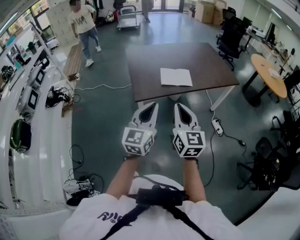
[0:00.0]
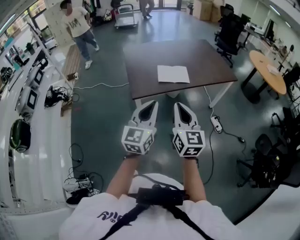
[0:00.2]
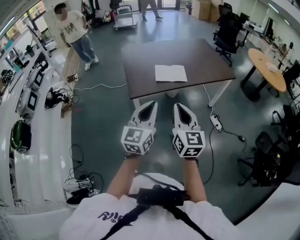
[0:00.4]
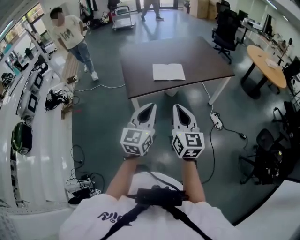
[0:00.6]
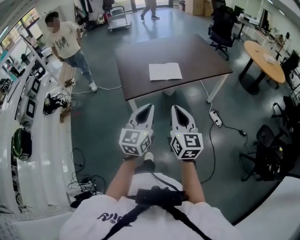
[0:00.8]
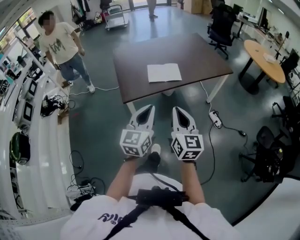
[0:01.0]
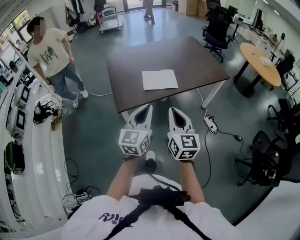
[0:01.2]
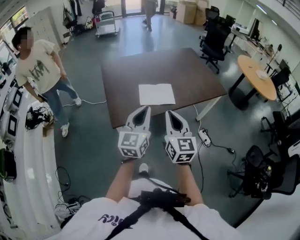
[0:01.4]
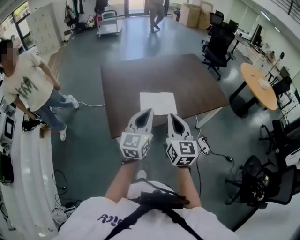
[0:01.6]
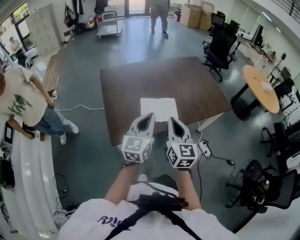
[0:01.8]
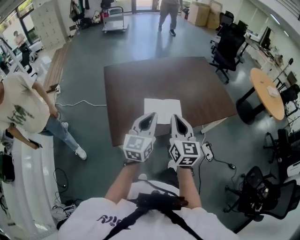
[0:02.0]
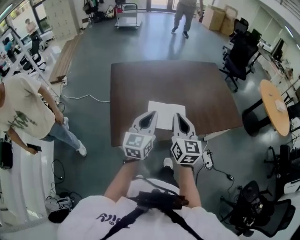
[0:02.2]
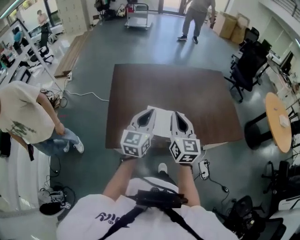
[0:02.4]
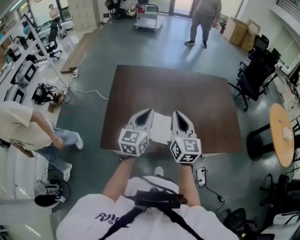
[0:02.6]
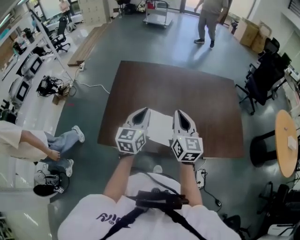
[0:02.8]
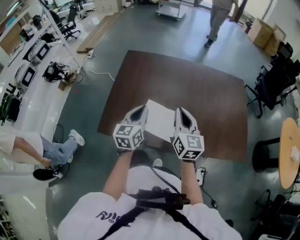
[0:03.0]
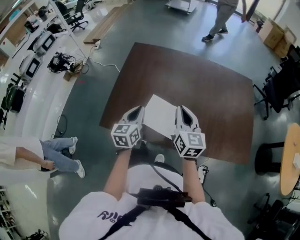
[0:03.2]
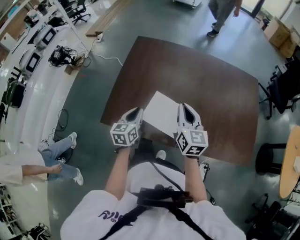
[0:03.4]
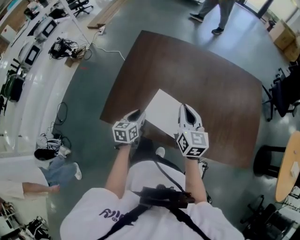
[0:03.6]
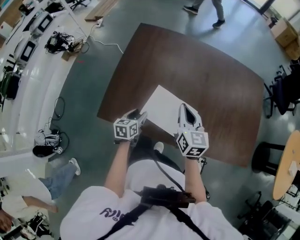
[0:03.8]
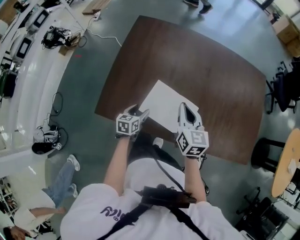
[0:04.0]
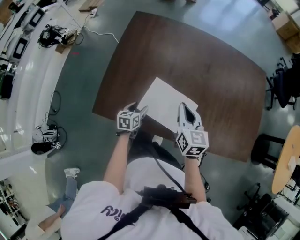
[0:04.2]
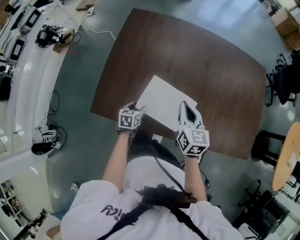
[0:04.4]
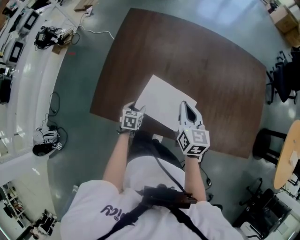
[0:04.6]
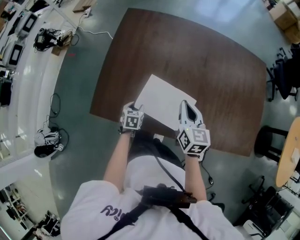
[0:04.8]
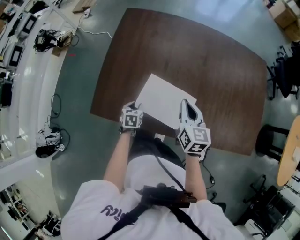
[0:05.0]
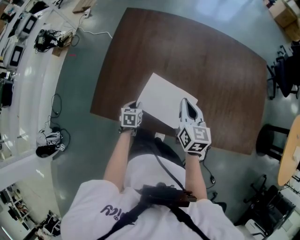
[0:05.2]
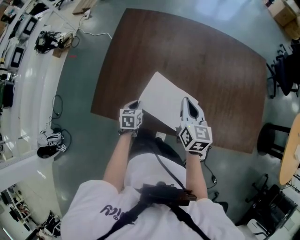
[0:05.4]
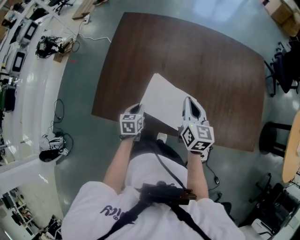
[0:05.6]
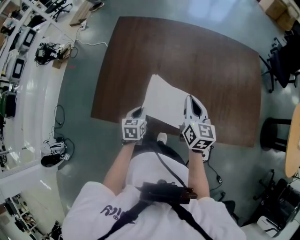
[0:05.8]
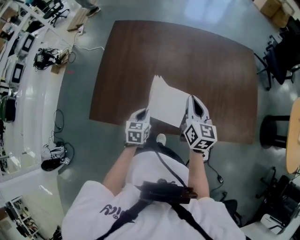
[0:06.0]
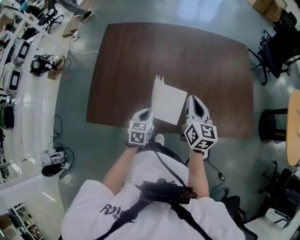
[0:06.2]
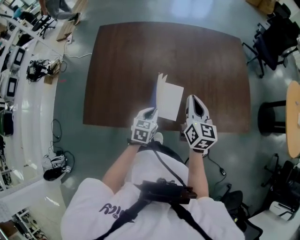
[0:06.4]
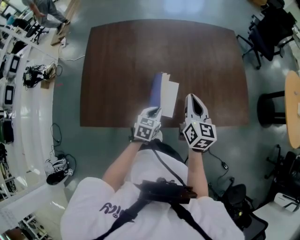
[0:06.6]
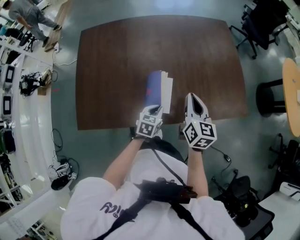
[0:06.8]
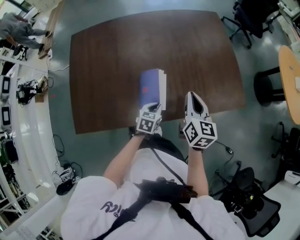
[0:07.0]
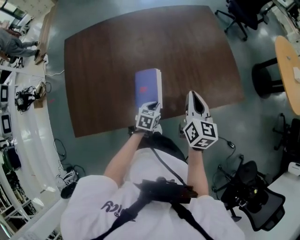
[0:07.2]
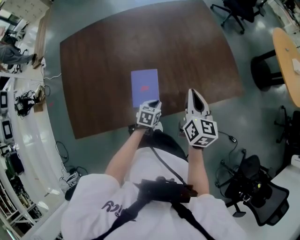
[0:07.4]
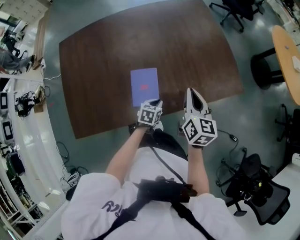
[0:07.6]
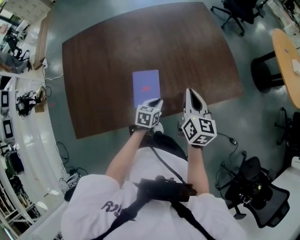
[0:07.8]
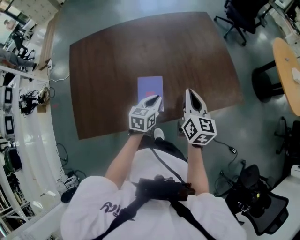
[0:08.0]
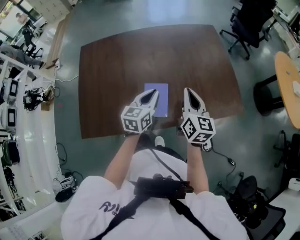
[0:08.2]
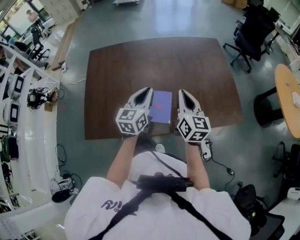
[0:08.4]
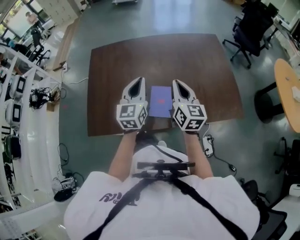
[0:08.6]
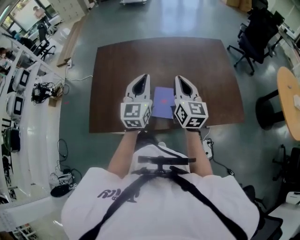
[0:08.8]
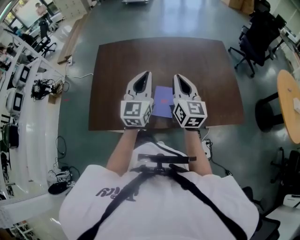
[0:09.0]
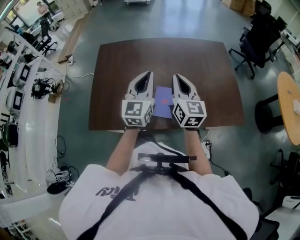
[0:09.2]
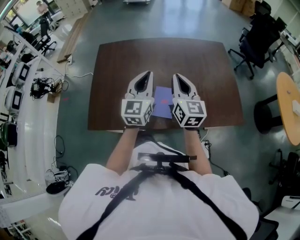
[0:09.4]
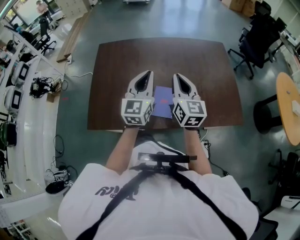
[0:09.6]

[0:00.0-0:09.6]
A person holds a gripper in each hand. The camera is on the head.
0.0 to 1.6 s: The two grippers go some 35 cm forward.
1.6 to 3.2 s: The right gripper changes place by some 50 cm, and changes its angle by about 30 degrees; the left gripper moves some 40 cm, and changes its angle by about 40 degrees.
3.2 to 4.8 s: The right gripper goes approximately 20 cm downward and forward. Meanwhile the left gripper shifts roughly 35 cm downward, tilts its fingers approximately 40 degrees downward, and opens its fingers.
4.8 to 6.4 s: The right gripper heads to the right and backward, covering some 20 cm. The left gripper goes approximately 30 cm to the right and upward, rotates some 30 degrees, and closes.
6.4 to 8.0 s: The left gripper is displaced to the right and forward by some 15 cm. Meanwhile the right gripper travels to the right by some 15 cm.
8.0 to 9.6 s: The left gripper is displaced upward and to the left by approximately 30 cm, and points its fingers about 30 degrees further upward. The right gripper heads to the left and upward, covering about 20 cm, and rotates about 30 degrees.

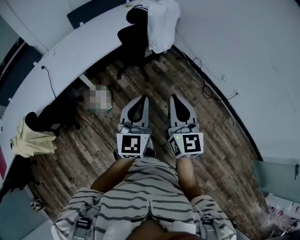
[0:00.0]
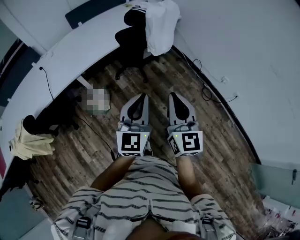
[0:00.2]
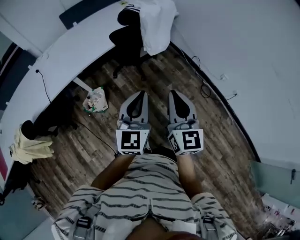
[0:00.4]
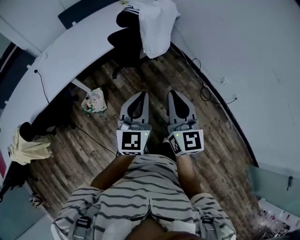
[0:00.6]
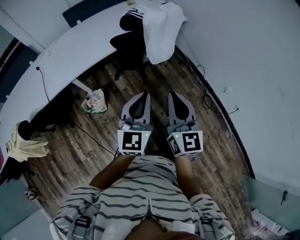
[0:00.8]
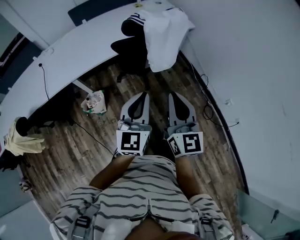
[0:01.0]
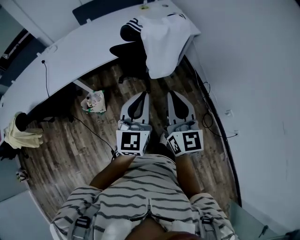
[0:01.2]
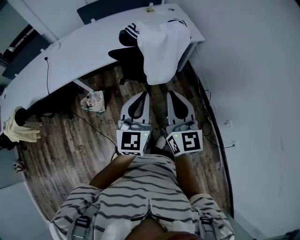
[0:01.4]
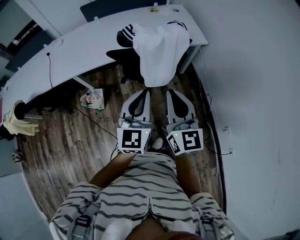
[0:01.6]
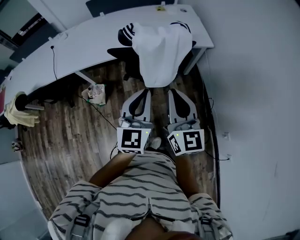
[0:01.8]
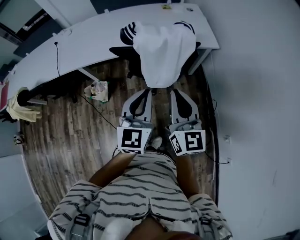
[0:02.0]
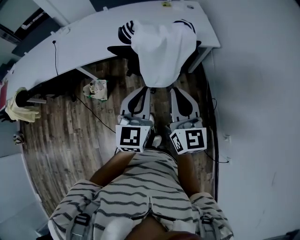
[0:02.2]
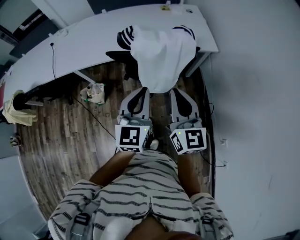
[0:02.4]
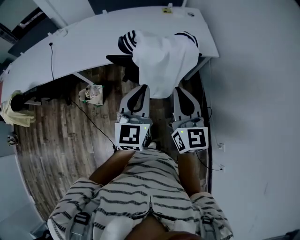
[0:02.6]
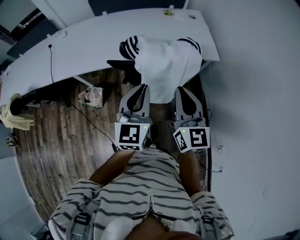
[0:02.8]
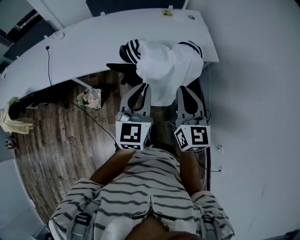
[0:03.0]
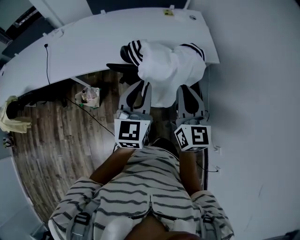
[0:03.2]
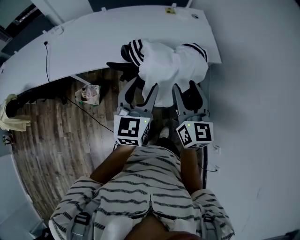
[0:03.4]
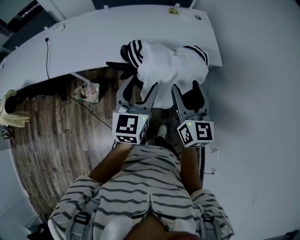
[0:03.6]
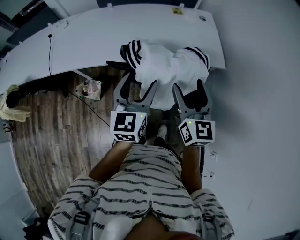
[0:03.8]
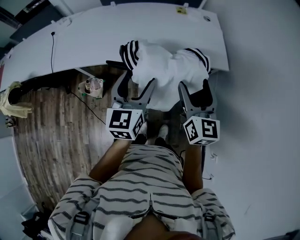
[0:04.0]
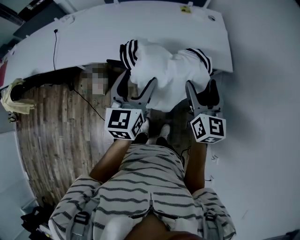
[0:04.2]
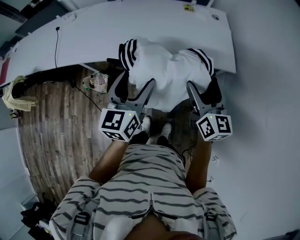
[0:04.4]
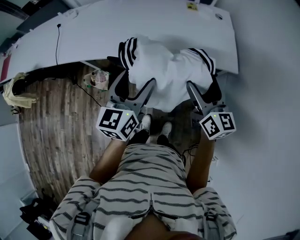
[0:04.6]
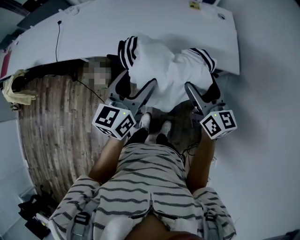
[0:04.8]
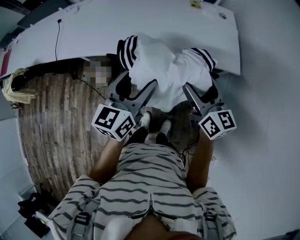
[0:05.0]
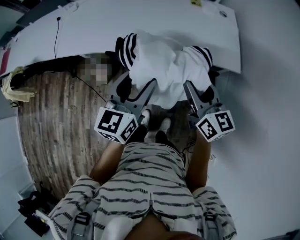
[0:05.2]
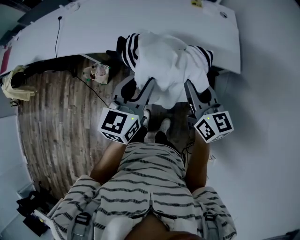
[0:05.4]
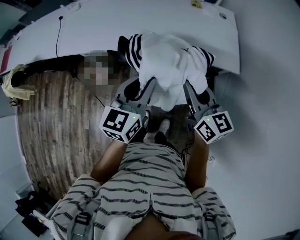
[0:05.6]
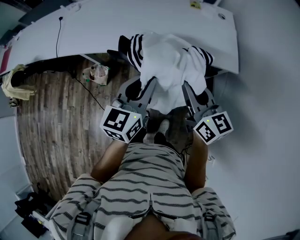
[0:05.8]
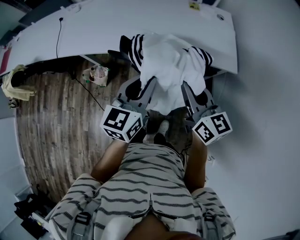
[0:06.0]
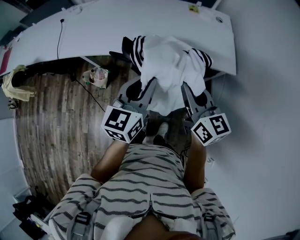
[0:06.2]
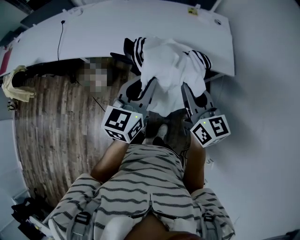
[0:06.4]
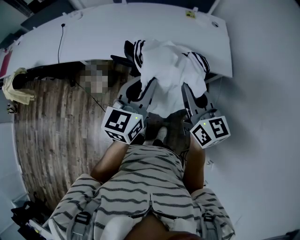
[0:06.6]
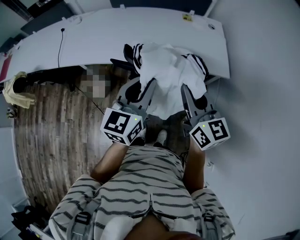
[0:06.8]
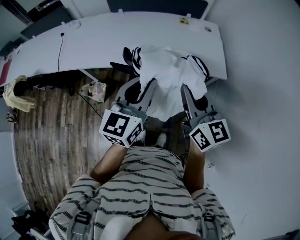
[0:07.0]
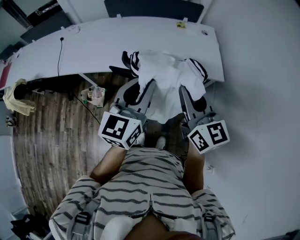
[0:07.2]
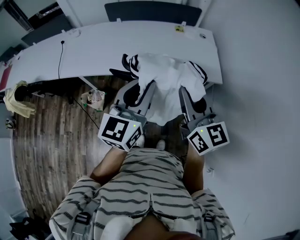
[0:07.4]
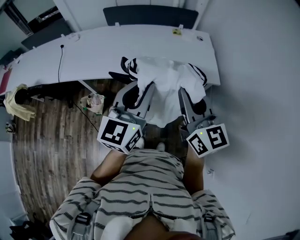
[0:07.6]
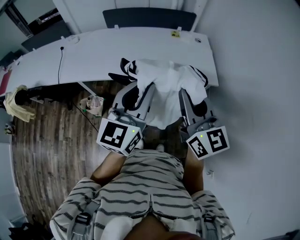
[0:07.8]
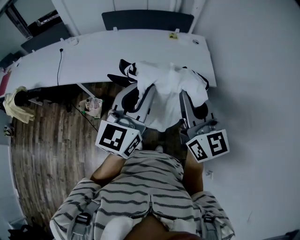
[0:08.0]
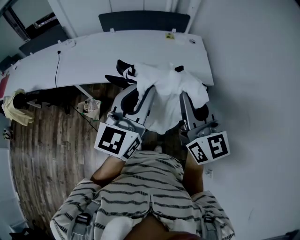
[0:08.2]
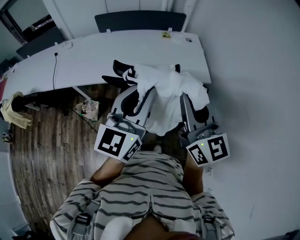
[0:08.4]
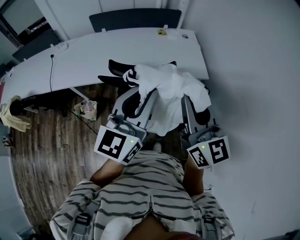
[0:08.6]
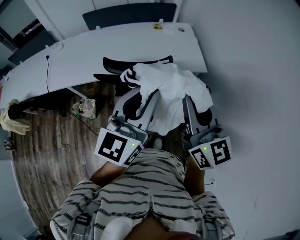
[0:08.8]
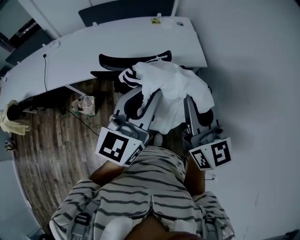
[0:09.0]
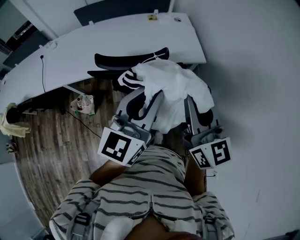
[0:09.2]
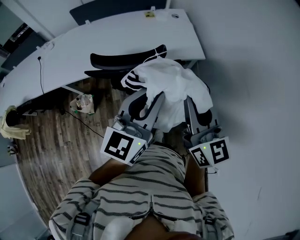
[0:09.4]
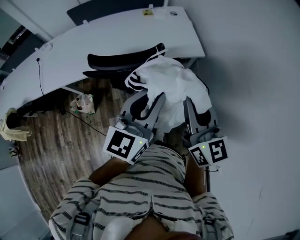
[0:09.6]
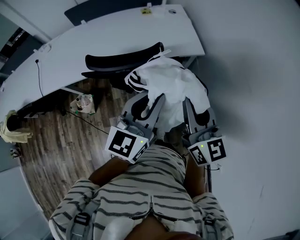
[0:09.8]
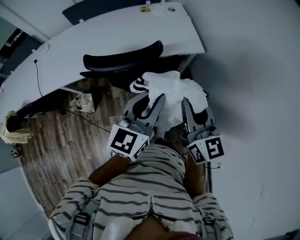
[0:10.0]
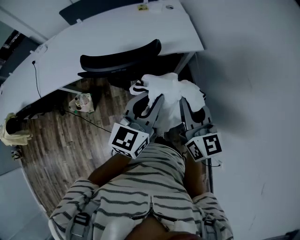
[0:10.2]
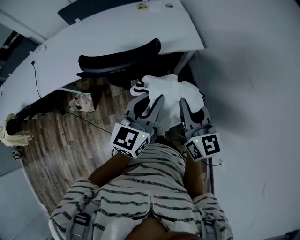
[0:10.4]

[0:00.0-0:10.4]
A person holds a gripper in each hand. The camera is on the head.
0.0 to 1.4 s: The grippers both shift forward and to the right by about 35 cm. The left gripper turns by about 20 degrees. Meanwhile the right gripper swivels roughly 20 degrees.
1.4 to 3.0 s: Both grippers travel together forward, approximately 20 cm.
3.0 to 4.4 s: The left gripper shifts roughly 10 cm forward, and opens its fingers, while the right gripper goes roughly 15 cm forward and to the right, and opens.
4.4 to 6.0 s: The left gripper closes up; the right gripper moves to the left, roughly 5 cm, and closes its fingers.
6.0 to 7.4 s: The right gripper goes roughly 15 cm upward and backward. The left gripper heads upward, covering roughly 10 cm.
7.4 to 9.0 s: The right gripper heads backward and to the right, covering roughly 10 cm, while the left gripper heads to the right and backward, covering roughly 10 cm.
9.0 to 10.4 s: Both grippers travel together downward, roughly 15 cm.

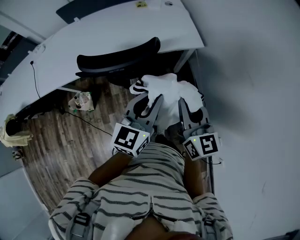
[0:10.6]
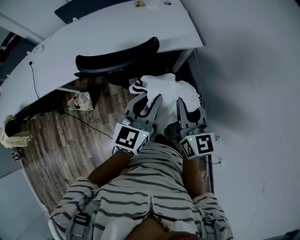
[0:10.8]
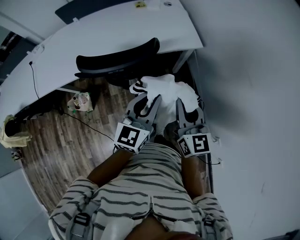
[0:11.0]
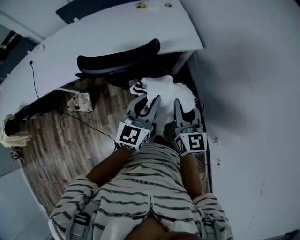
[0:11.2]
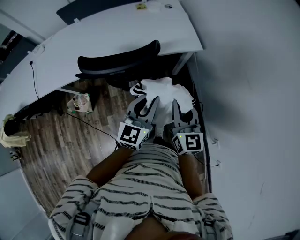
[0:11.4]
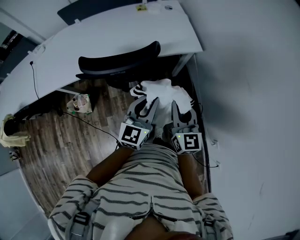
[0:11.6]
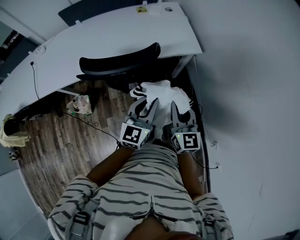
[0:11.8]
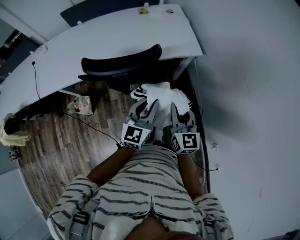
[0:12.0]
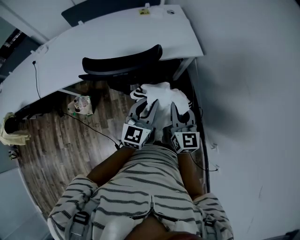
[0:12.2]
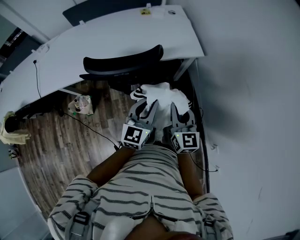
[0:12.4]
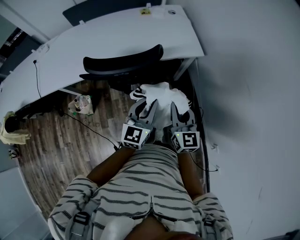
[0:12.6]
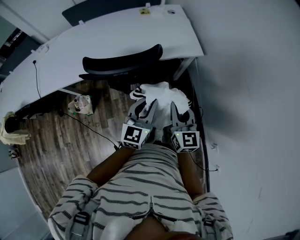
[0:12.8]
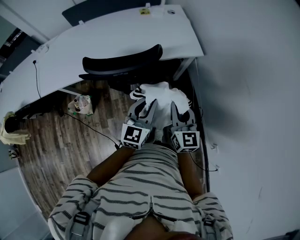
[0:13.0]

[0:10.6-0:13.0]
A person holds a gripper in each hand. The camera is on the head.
10.6 to 11.8 s: Both grippers move downward, roughly 5 cm.
11.8 to 13.0 s: There are only small adjustments of the grippers.

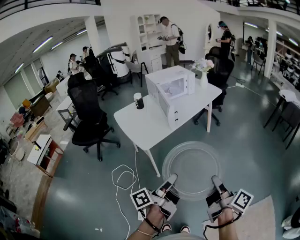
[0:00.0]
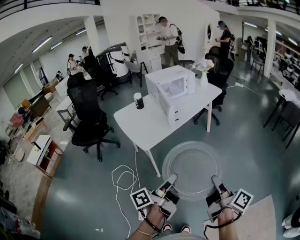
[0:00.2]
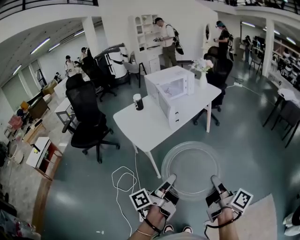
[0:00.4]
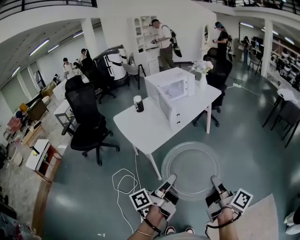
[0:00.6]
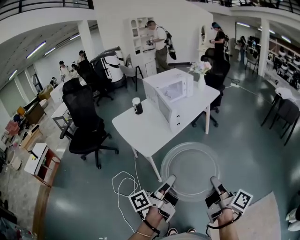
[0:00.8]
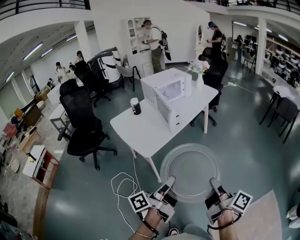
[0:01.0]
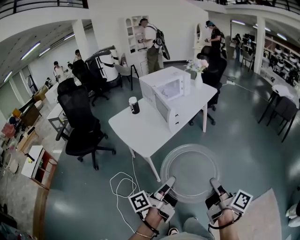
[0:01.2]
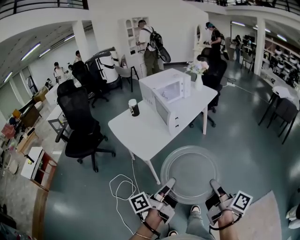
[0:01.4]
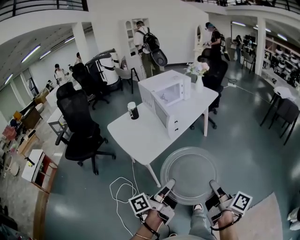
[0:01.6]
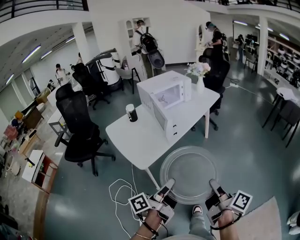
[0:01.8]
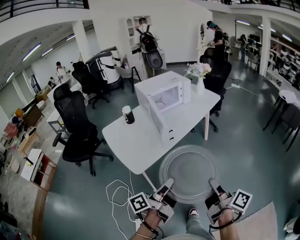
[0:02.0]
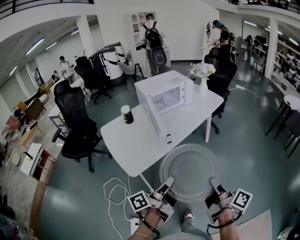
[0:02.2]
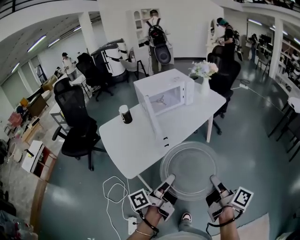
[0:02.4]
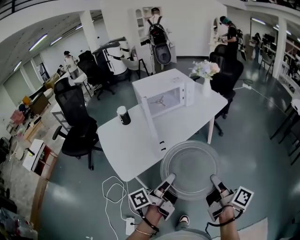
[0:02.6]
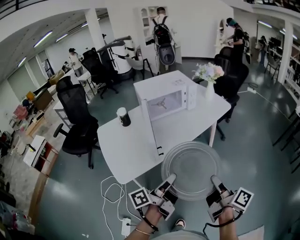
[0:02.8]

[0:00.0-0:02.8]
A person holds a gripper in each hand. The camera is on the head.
0.0 to 1.4 s: The grippers both shift to the left by about 5 cm.
1.4 to 2.8 s: The grippers both shift forward and to the right by roughly 35 cm.
